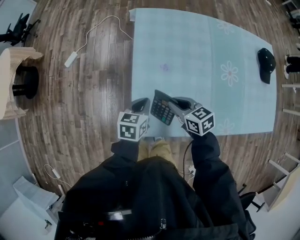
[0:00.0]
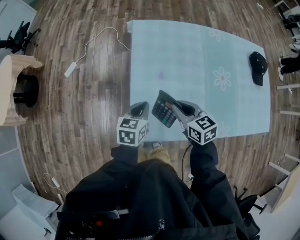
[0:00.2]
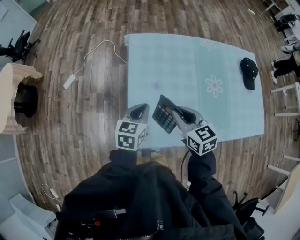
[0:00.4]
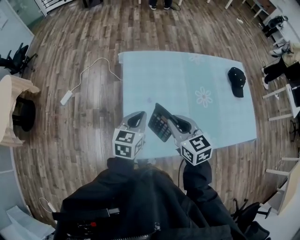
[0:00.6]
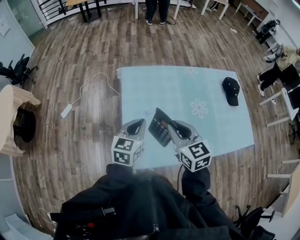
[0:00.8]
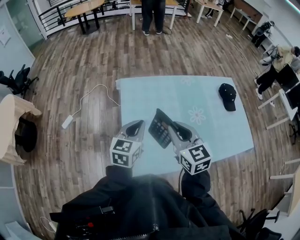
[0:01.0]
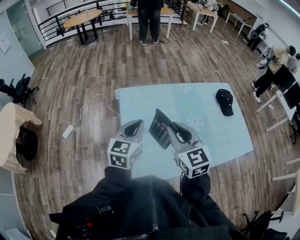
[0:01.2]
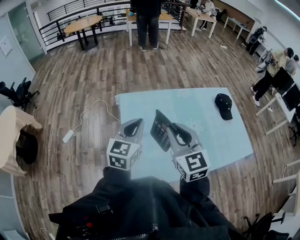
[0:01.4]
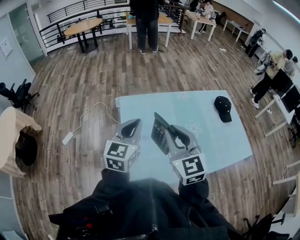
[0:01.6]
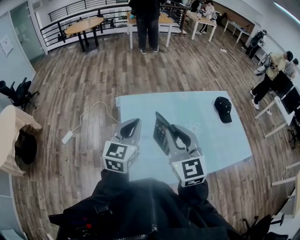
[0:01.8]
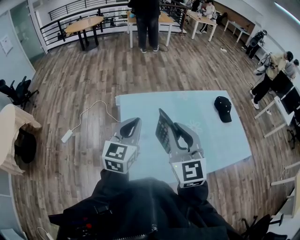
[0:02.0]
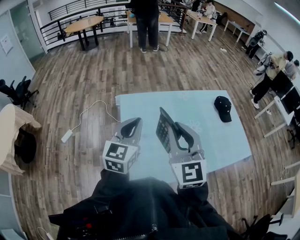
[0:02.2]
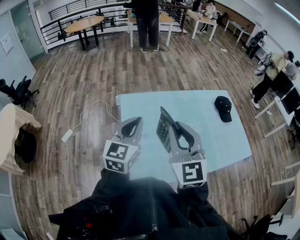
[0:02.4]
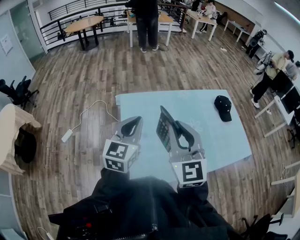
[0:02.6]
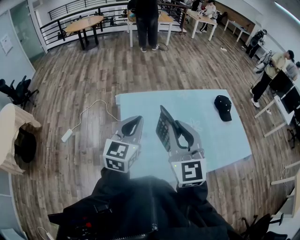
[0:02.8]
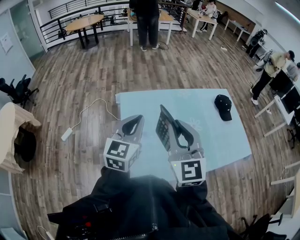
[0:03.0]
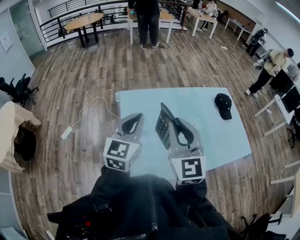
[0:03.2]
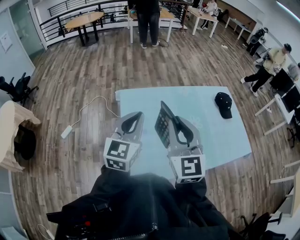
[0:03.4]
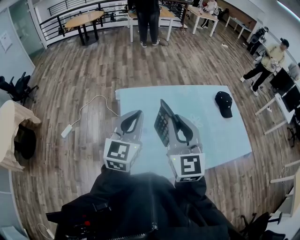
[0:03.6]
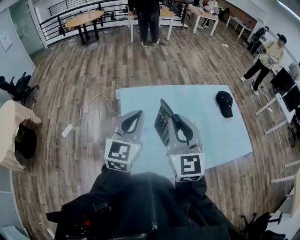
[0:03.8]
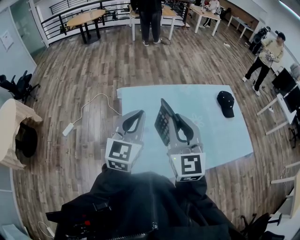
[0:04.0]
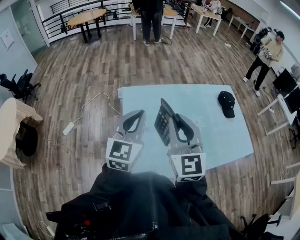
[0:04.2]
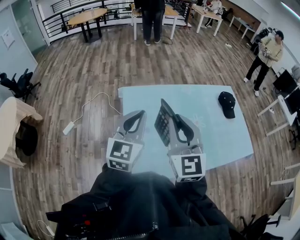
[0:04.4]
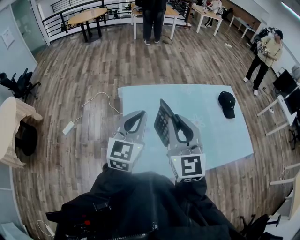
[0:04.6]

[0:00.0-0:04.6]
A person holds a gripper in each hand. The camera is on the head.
0.0 to 1.6 s: The grippers both shift upward by about 35 cm. The left gripper tilts its fingers approximately 30 degrees upward; the right gripper rotates approximately 60 degrees.
1.6 to 4.6 s: There are only small adjustments of the grippers.

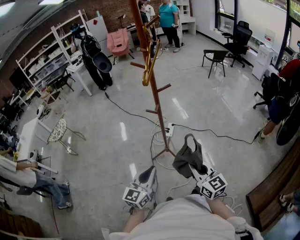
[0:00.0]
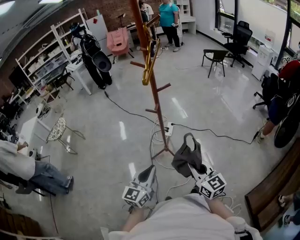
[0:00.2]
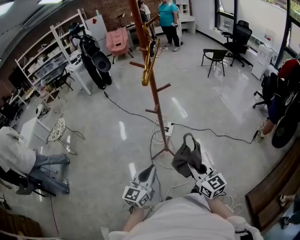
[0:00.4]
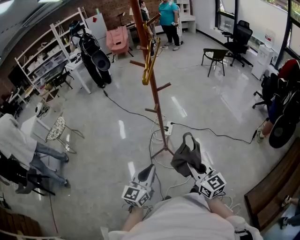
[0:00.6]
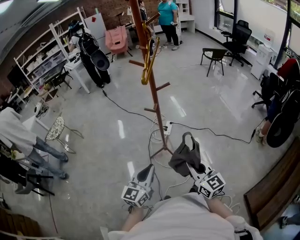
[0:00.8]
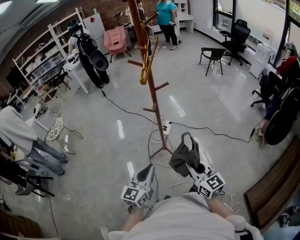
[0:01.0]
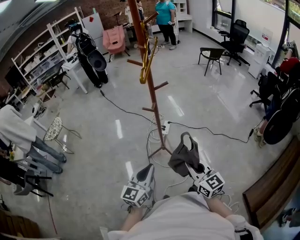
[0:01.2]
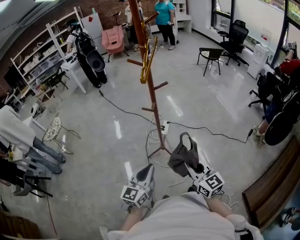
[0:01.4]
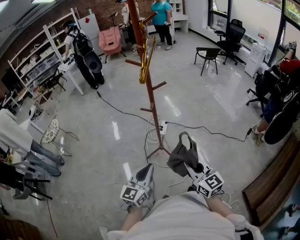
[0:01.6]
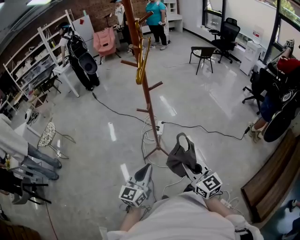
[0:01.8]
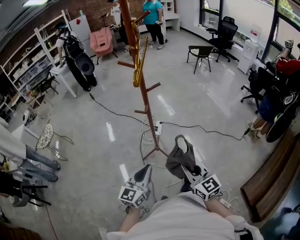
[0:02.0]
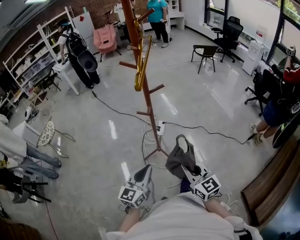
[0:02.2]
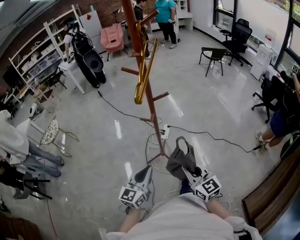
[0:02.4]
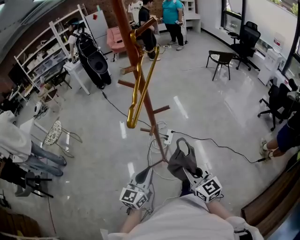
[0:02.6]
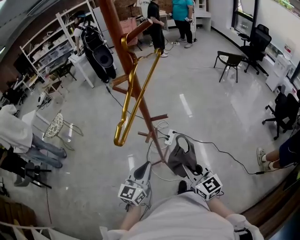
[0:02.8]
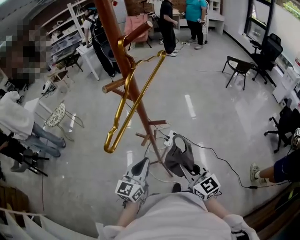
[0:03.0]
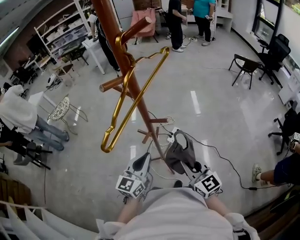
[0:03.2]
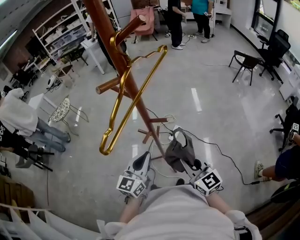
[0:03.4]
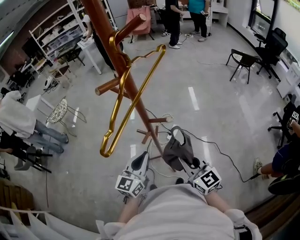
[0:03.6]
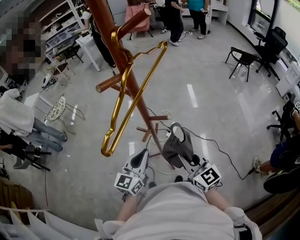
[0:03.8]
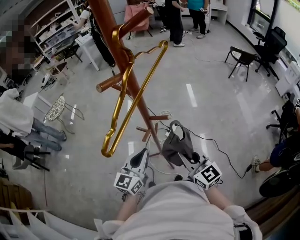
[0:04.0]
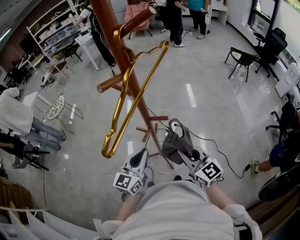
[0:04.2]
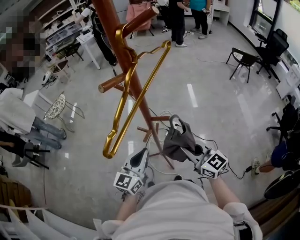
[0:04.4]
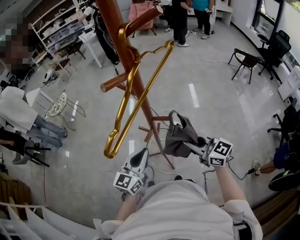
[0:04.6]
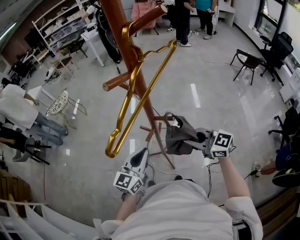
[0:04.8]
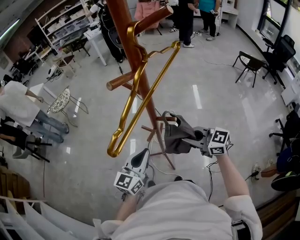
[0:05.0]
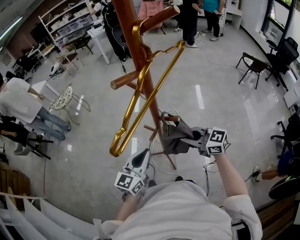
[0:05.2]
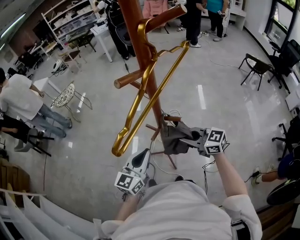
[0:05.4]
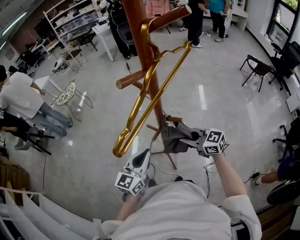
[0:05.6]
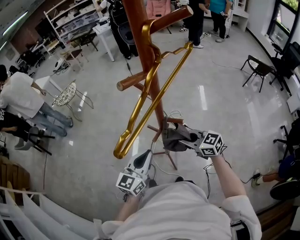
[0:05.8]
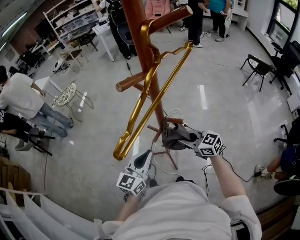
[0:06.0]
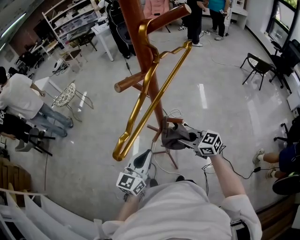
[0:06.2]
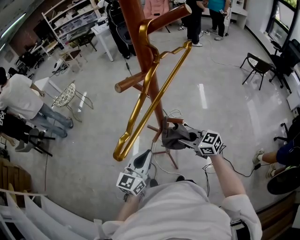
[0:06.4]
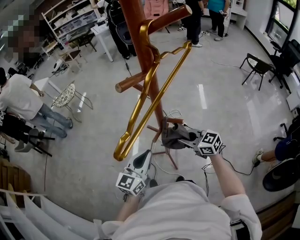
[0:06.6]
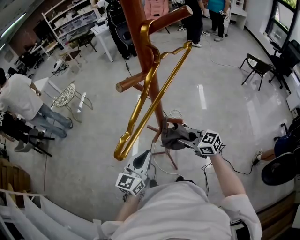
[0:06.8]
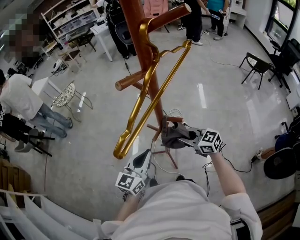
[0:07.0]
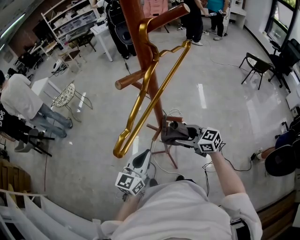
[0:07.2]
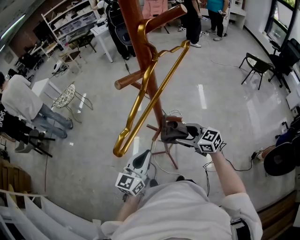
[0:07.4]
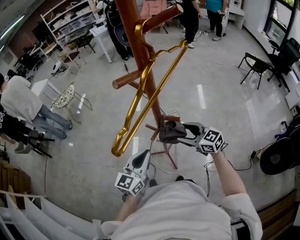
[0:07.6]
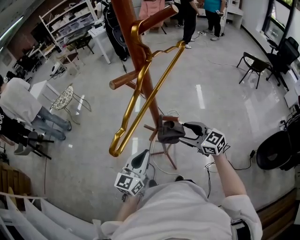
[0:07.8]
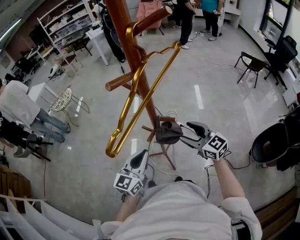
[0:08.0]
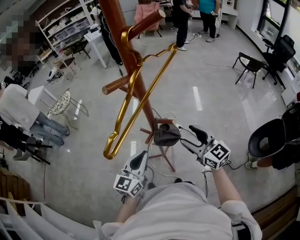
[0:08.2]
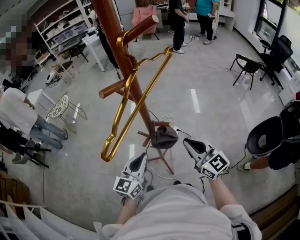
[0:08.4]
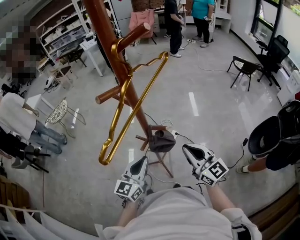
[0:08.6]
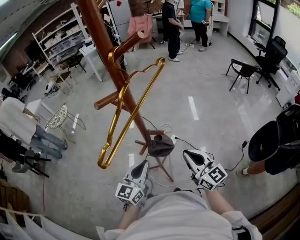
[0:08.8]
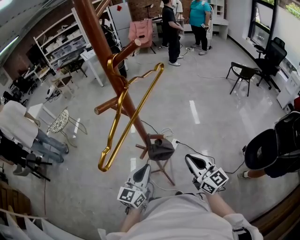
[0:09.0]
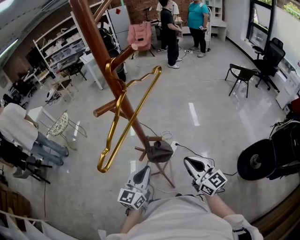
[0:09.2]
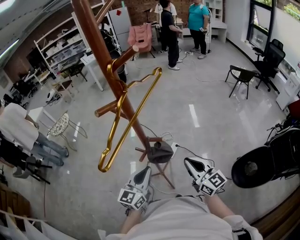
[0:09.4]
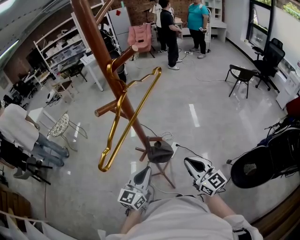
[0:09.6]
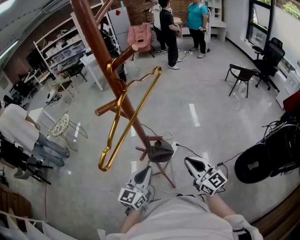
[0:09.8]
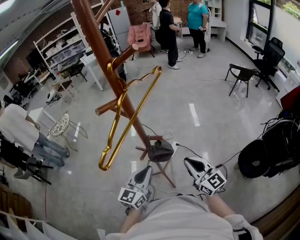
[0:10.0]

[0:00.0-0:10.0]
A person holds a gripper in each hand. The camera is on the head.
0.0 to 1.4 s: The two grippers keep their place.
1.4 to 2.8 s: The grippers both shift forward by some 25 cm.
2.8 to 4.2 s: Both grippers travel together forward, roughly 10 cm.
4.2 to 5.8 s: The right gripper heads forward and downward, covering some 10 cm, and changes its angle by about 30 degrees.
5.8 to 7.2 s: The right gripper opens.
7.2 to 8.6 s: The right gripper goes roughly 15 cm upward, backward and to the right, changes its angle by about 40 degrees, and closes up.
8.6 to 10.0 s: The grippers stay close to where they were, moving slightly.

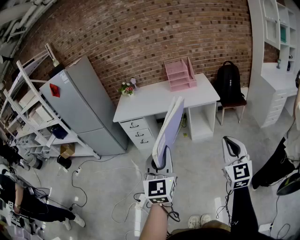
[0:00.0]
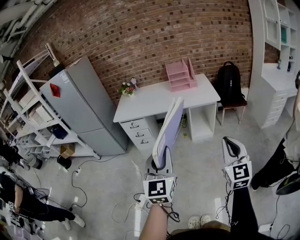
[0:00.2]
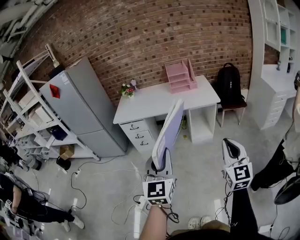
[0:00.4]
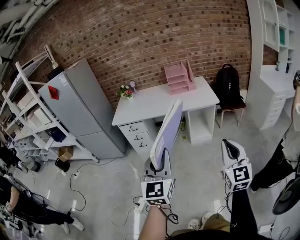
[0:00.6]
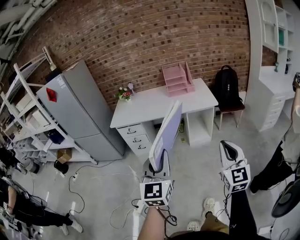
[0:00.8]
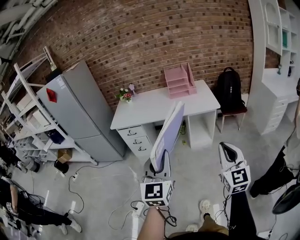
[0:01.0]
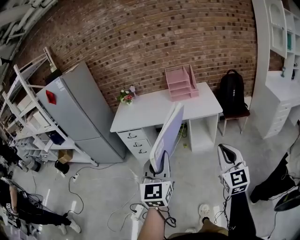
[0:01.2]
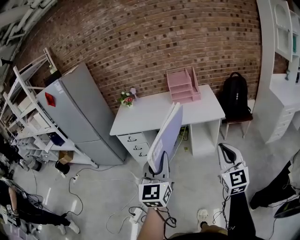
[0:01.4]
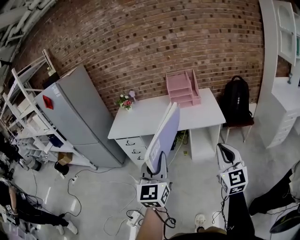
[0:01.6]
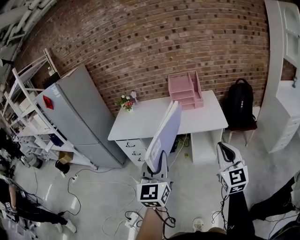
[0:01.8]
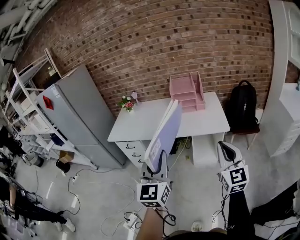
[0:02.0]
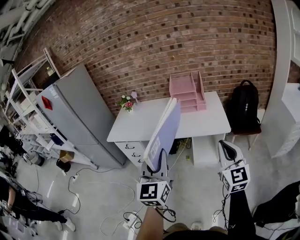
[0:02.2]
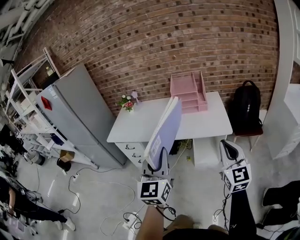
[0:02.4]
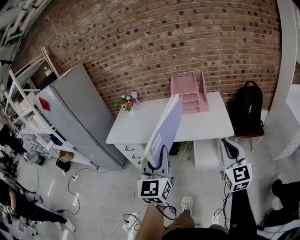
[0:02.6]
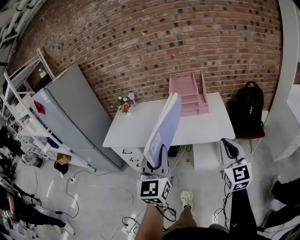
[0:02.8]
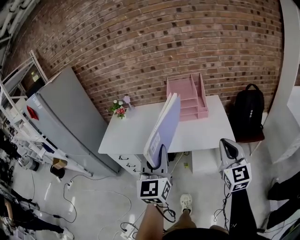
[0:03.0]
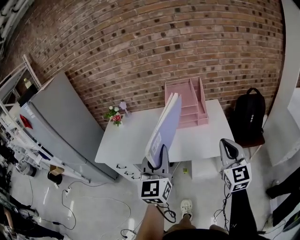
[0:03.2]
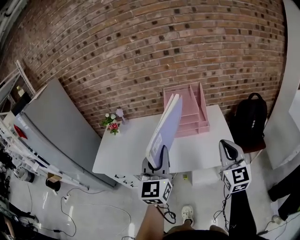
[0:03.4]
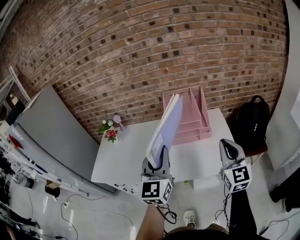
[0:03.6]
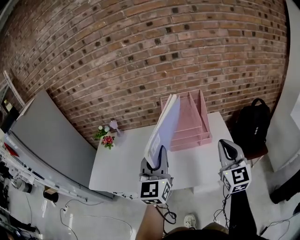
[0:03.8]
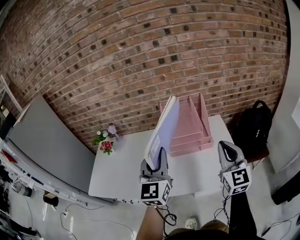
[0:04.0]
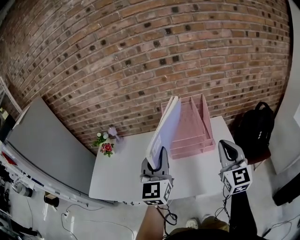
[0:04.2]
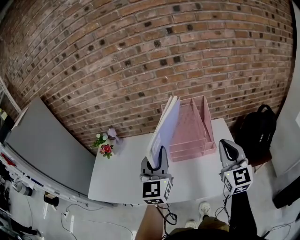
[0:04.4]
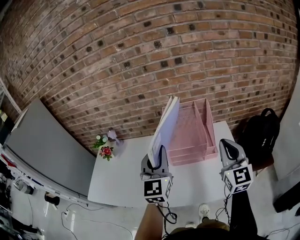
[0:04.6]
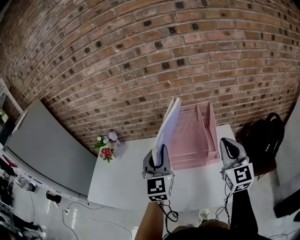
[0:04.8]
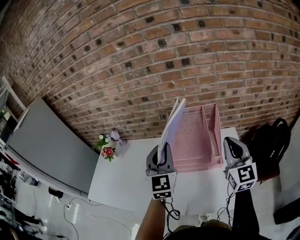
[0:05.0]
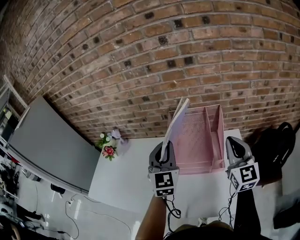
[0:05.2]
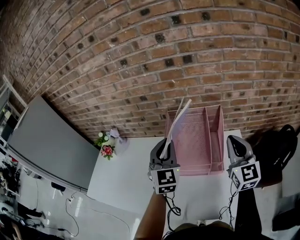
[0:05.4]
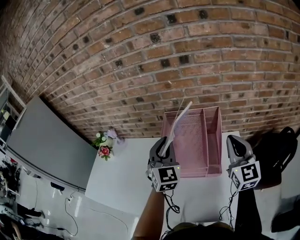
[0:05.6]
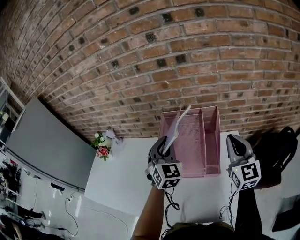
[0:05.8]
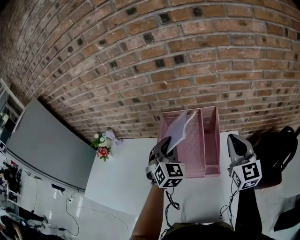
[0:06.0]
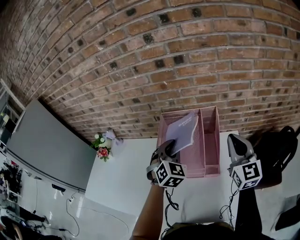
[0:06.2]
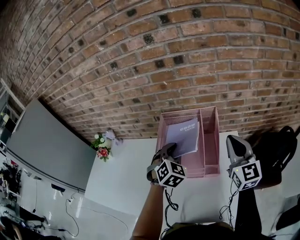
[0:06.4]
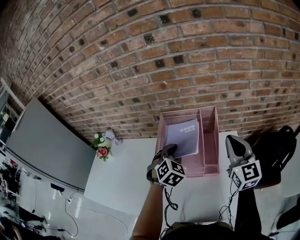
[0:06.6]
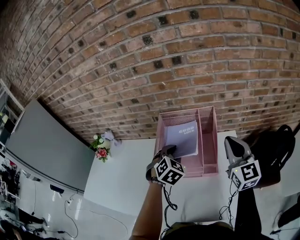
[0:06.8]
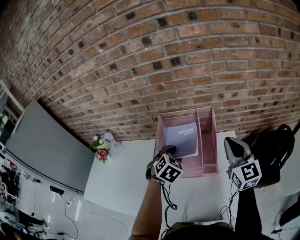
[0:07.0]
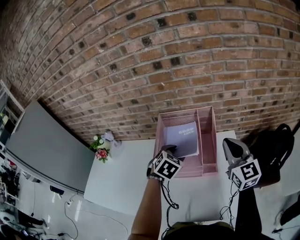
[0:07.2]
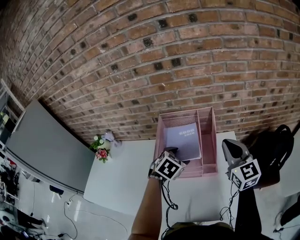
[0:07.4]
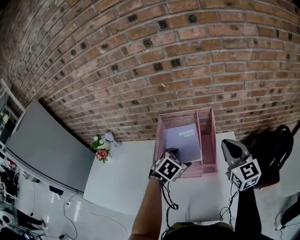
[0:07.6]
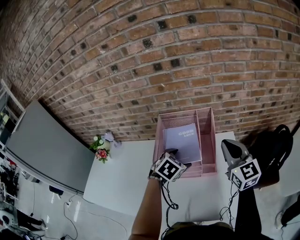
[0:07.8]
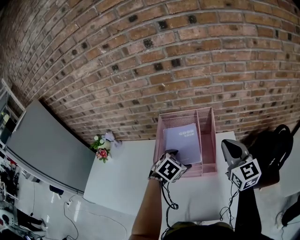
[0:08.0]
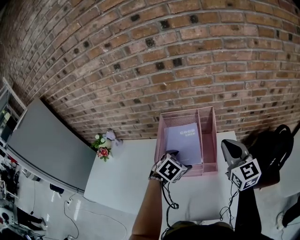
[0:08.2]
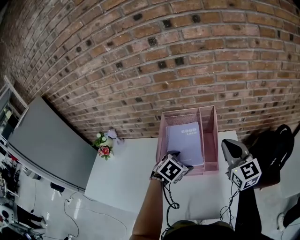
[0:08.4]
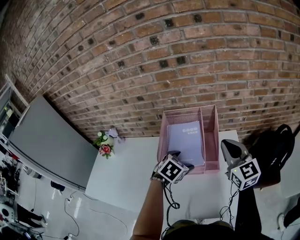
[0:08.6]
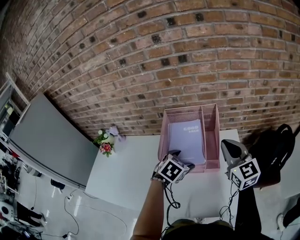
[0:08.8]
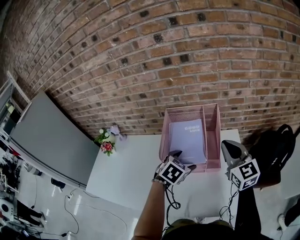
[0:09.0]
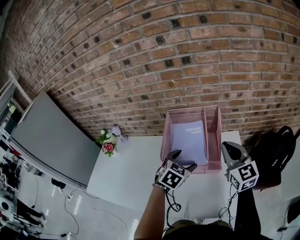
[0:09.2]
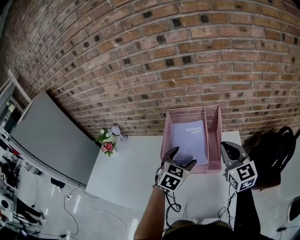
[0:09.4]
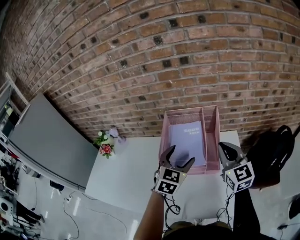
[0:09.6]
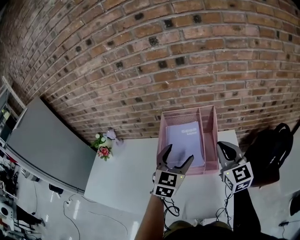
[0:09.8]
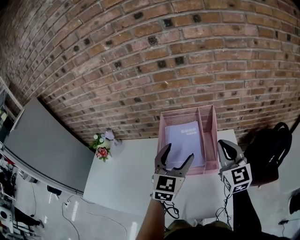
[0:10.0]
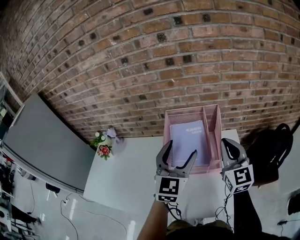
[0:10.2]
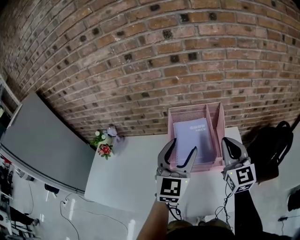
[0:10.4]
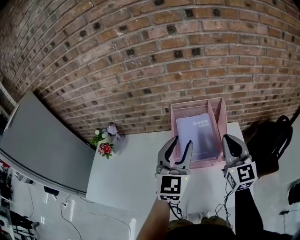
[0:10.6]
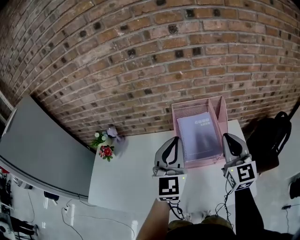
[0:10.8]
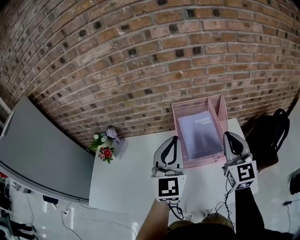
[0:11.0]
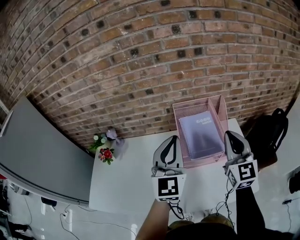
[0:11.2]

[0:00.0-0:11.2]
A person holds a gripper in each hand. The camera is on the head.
0.0 to 1.6 s: Both grippers move forward, some 20 cm.
1.6 to 3.2 s: The grippers both shift forward by about 35 cm.
3.2 to 4.8 s: The grippers both shift forward by roughly 35 cm.
4.8 to 6.4 s: The left gripper shifts approximately 20 cm downward, forward and to the right, and tilts its fingers roughly 40 degrees downward. Meanwhile the right gripper heads forward and to the right, covering about 15 cm.
6.4 to 8.0 s: The left gripper moves backward and downward, roughly 10 cm, turns by some 30 degrees, and opens its fingers.
8.0 to 9.6 s: The left gripper shifts about 5 cm upward, and angles its fingers upward, by about 30 degrees.
9.6 to 11.2 s: The right gripper goes some 10 cm to the left and upward, and swivels approximately 20 degrees, while the left gripper is displaced upward and to the left by about 20 cm, tilts its fingers approximately 30 degrees upward, and closes up.
